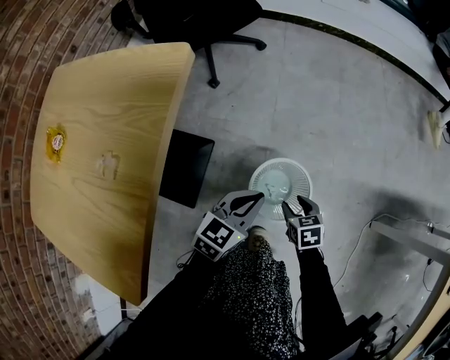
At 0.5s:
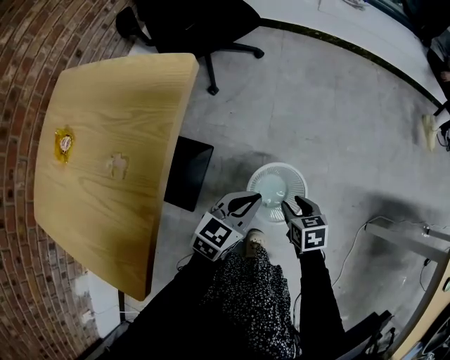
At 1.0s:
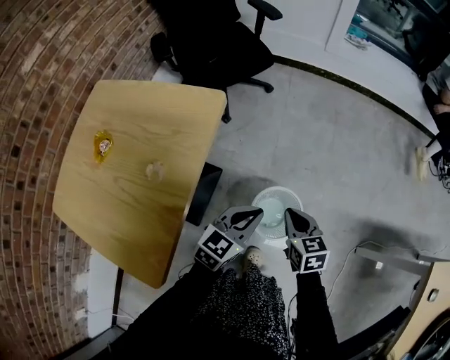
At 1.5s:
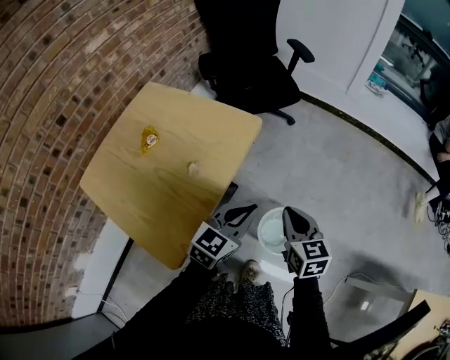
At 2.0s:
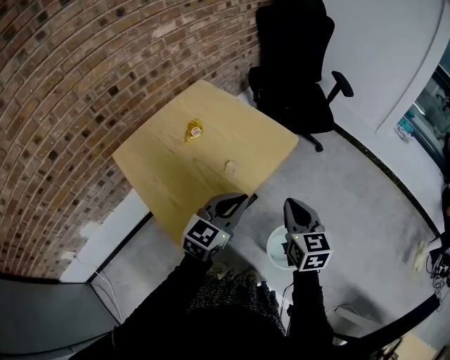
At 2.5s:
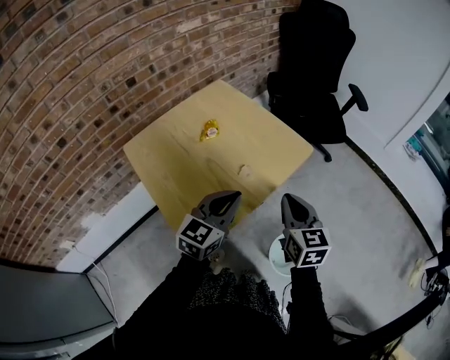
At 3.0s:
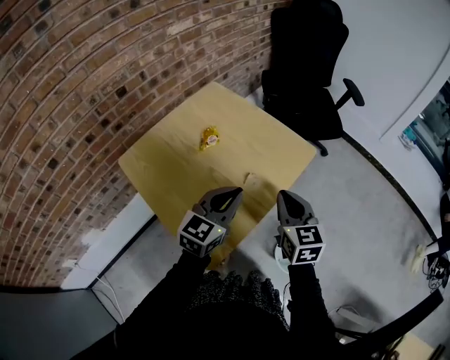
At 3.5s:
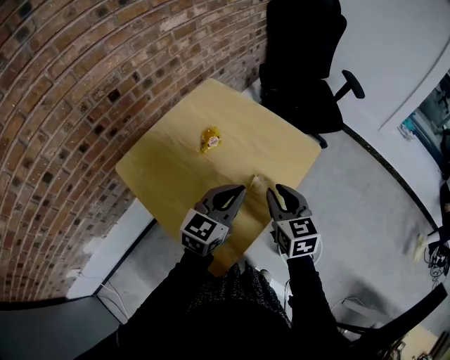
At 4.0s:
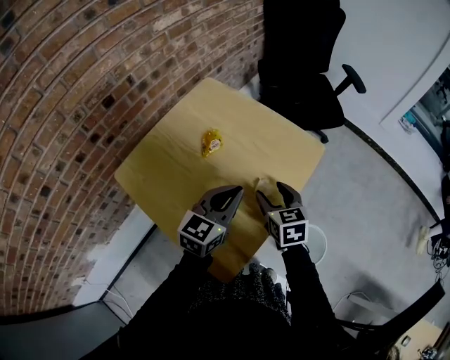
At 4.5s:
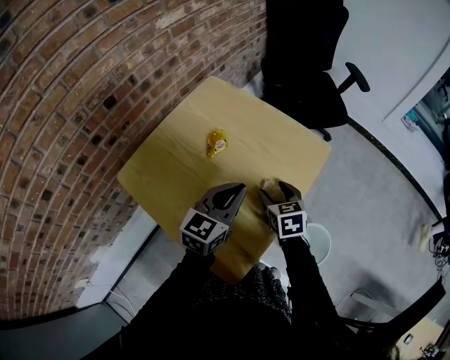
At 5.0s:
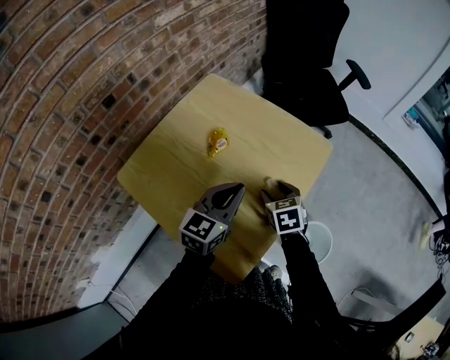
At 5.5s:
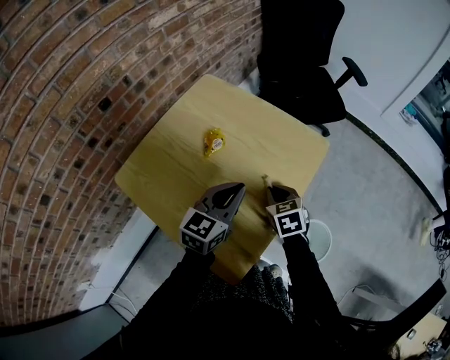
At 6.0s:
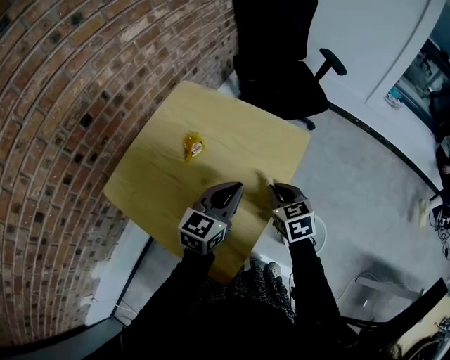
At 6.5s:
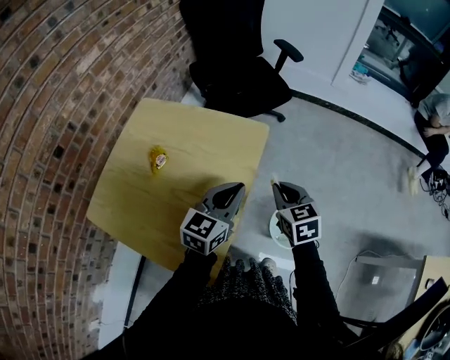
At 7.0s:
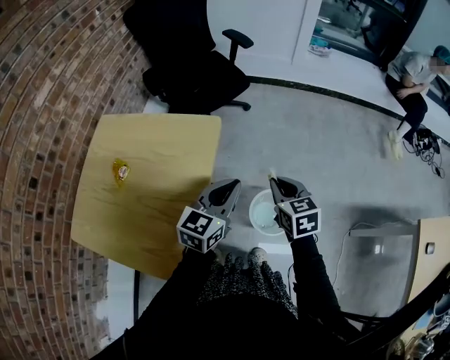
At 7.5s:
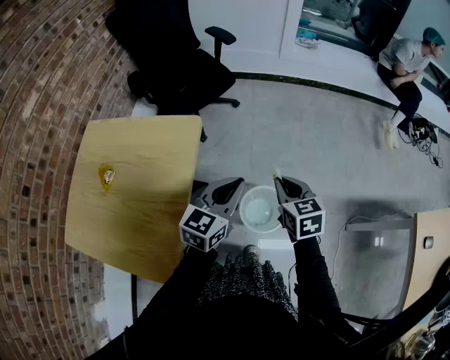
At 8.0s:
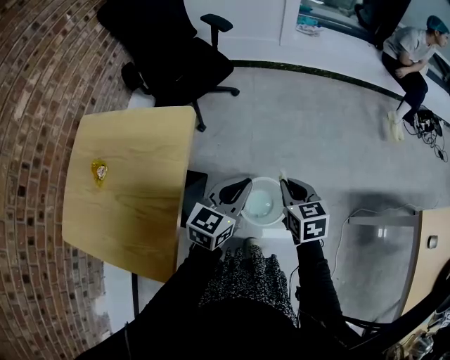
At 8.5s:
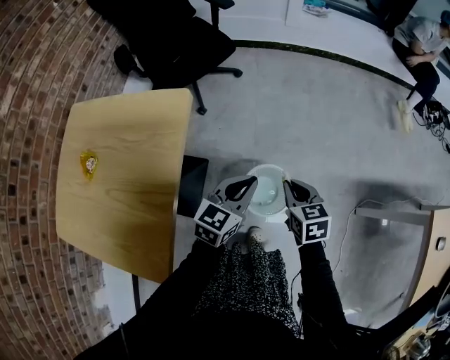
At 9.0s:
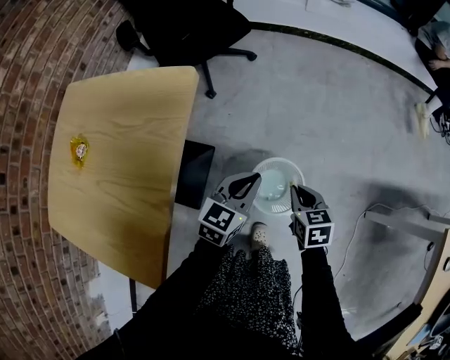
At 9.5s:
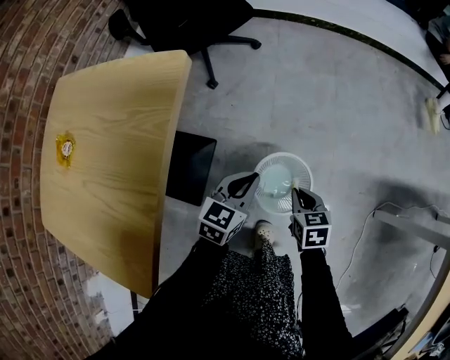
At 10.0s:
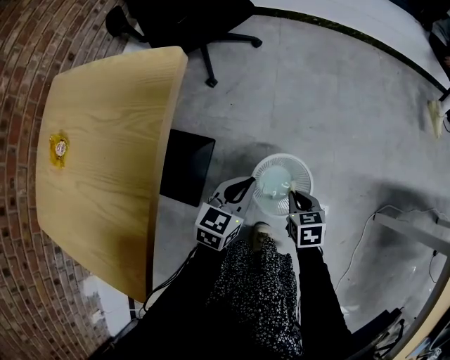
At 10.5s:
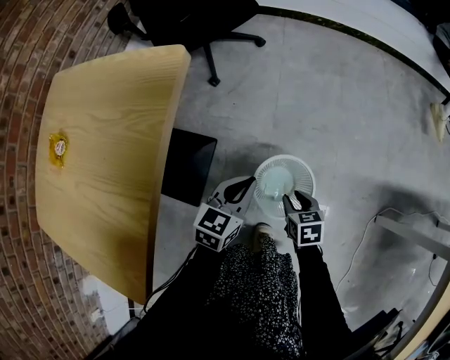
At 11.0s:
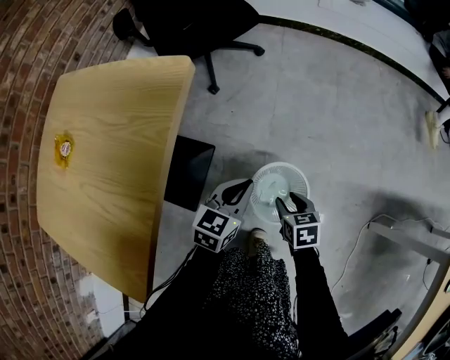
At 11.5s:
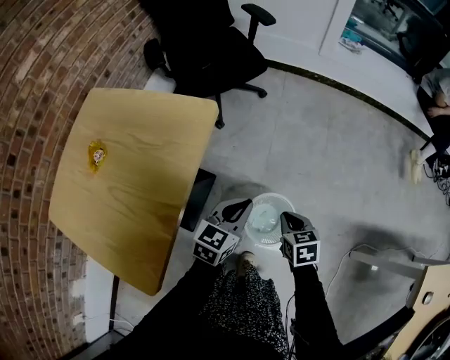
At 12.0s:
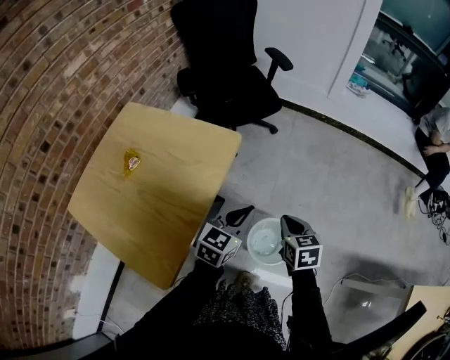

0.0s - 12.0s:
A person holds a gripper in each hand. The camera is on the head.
0.0s - 2.0s: Both grippers move upward, about 40 cm. The left gripper rotates approximately 40 degrees, while the right gripper tilts its fingers some 40 degrees upward, and closes its fingers.
2.0s - 4.0s: The two grippers go roughly 20 cm to the left and forward. The right gripper opens its fingers.
4.0s - 6.0s: The right gripper shifts by about 5 cm, and closes.
6.0s - 8.0s: The right gripper moves some 35 cm, and turns by about 30 degrees. The left gripper changes place by approximately 35 cm, and changes its angle by approximately 30 degrees.
8.0s - 10.0s: The two grippers go approximately 30 cm downward.
10.0s - 12.0s: Both grippers move upward, roughly 25 cm. The right gripper opens and closes again.

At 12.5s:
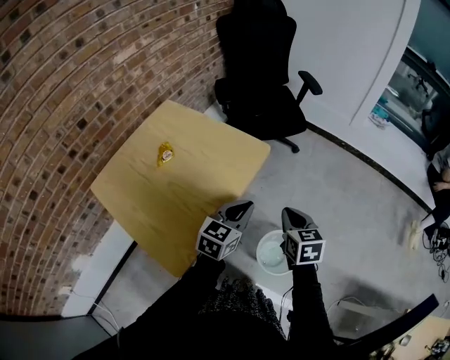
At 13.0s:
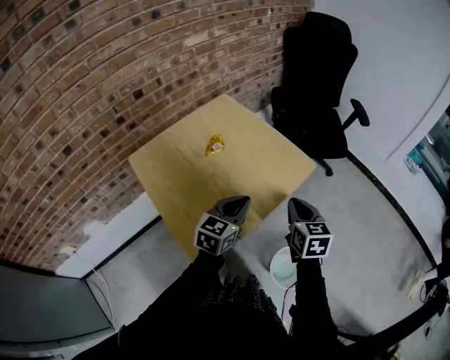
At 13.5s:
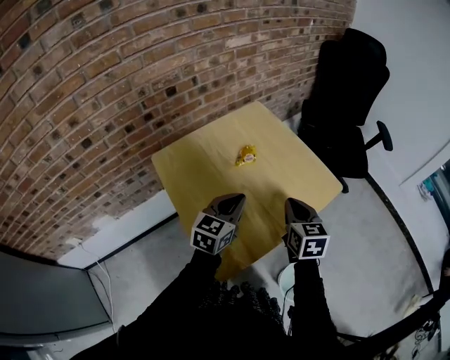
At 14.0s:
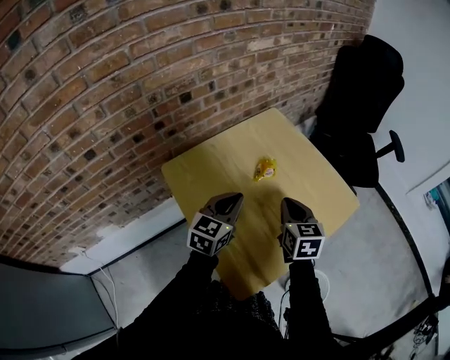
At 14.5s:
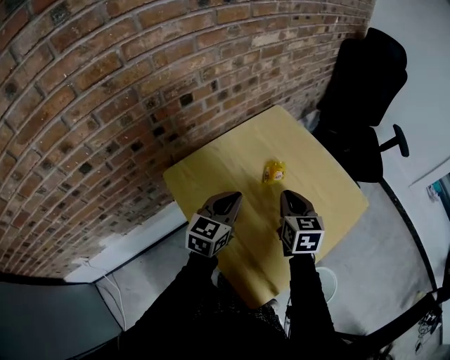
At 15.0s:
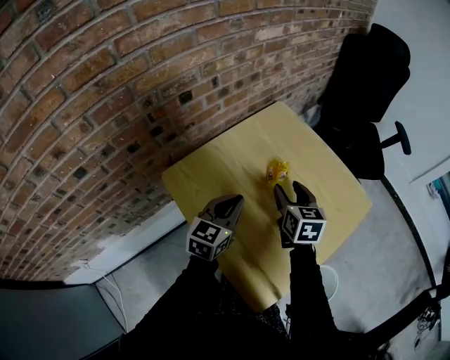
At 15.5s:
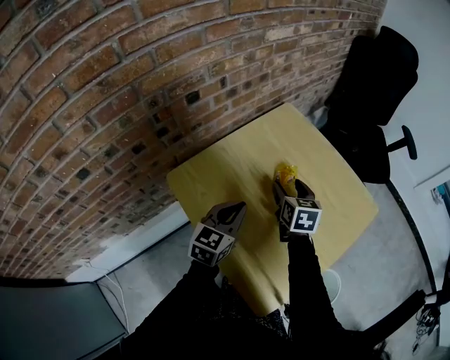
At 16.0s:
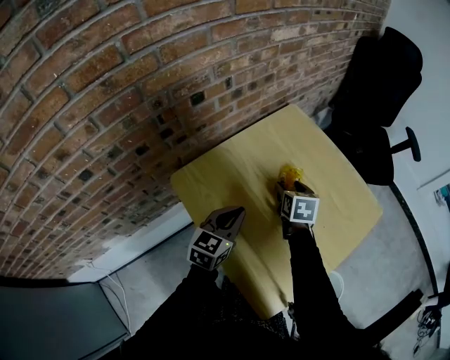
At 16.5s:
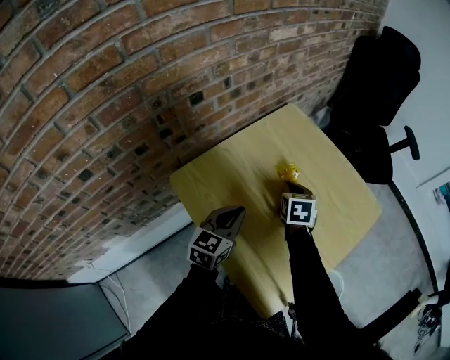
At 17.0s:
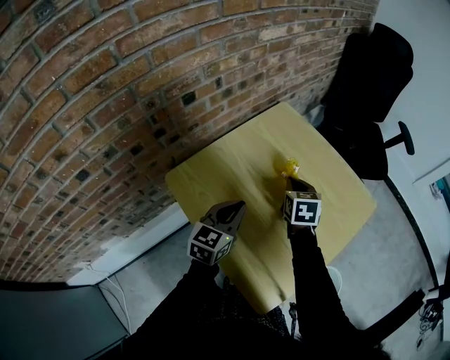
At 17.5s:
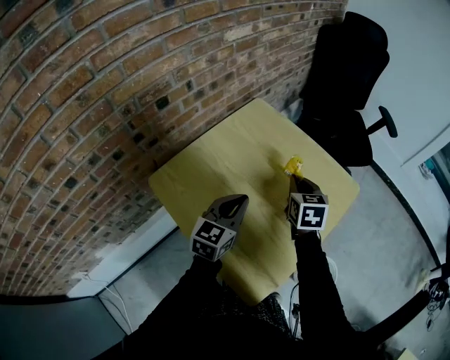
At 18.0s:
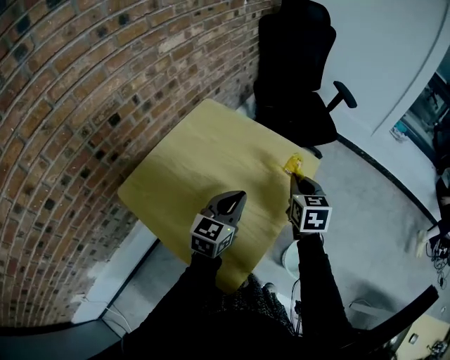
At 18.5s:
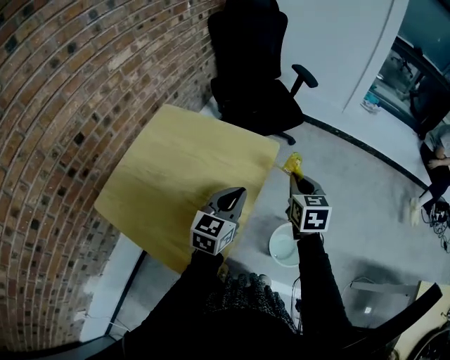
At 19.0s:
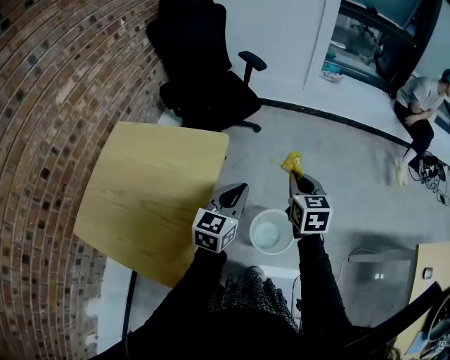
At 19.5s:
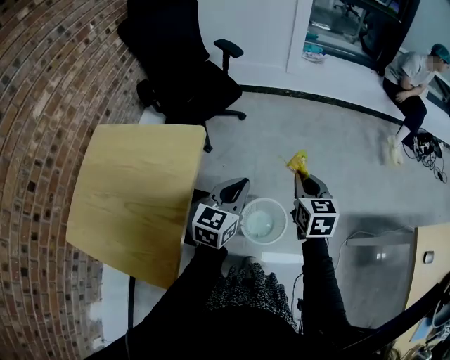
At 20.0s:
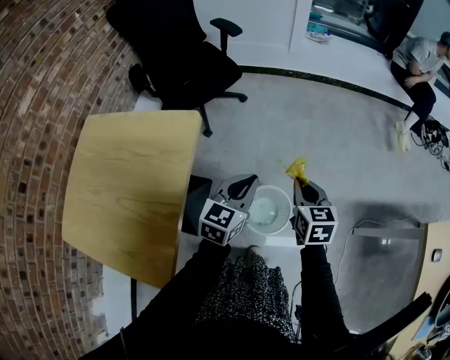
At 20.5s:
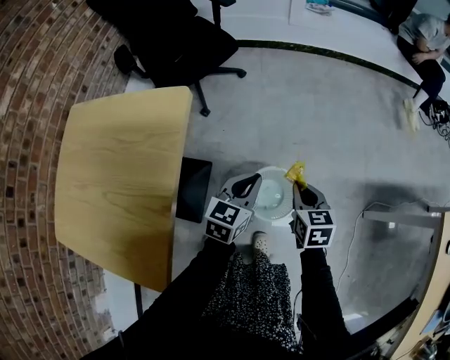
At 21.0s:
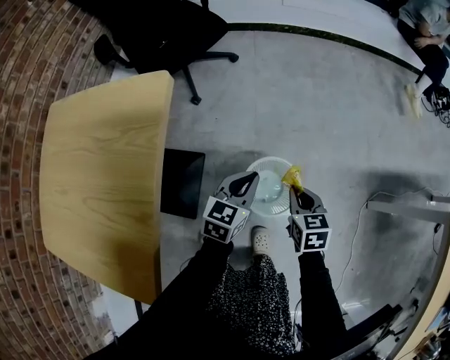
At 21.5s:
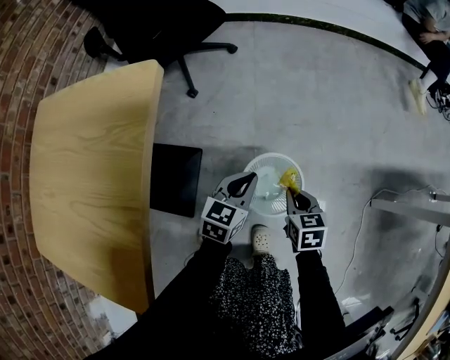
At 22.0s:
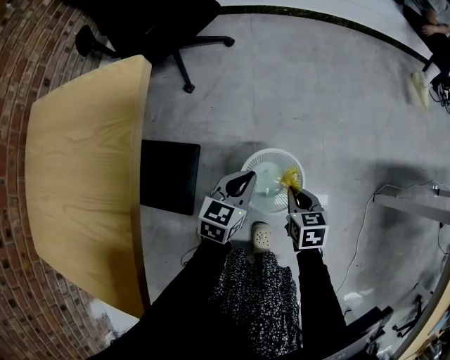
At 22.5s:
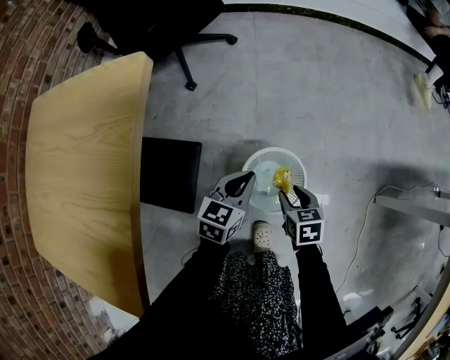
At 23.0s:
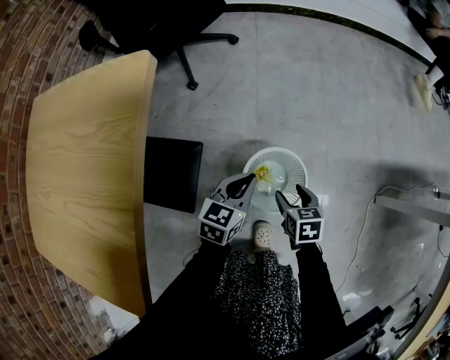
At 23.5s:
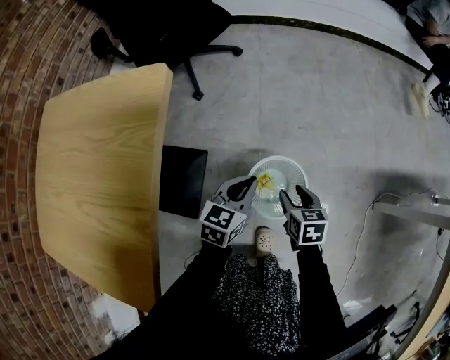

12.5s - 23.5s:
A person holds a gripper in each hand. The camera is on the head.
12.5s - 14.5s: Both grippers are carried to the left, approximately 40 cm. The left gripper rotates some 30 degrees.
14.5s - 16.0s: The right gripper moves downward and forward, approximately 15 cm, and opens; the left gripper shifts by approximately 5 cm.
16.0s - 18.0s: The left gripper travels to the right by about 25 cm; the right gripper moves to the right and upward, approximately 30 cm, swivels roughly 20 degrees, and closes up.
18.0s - 20.0s: The right gripper moves roughly 40 cm, and changes its angle by approximately 30 degrees. Meanwhile the left gripper ends up approximately 40 cm from where it was, and rotates some 30 degrees.
20.0s - 21.5s: Both grippers move downward, approximately 25 cm.
21.5s - 23.5s: The right gripper opens.

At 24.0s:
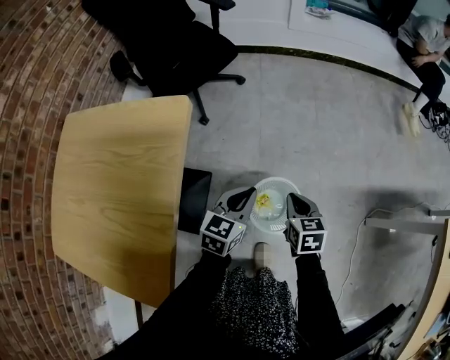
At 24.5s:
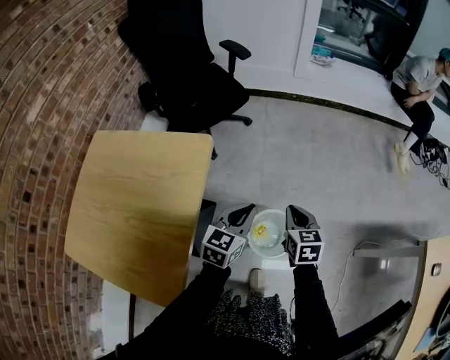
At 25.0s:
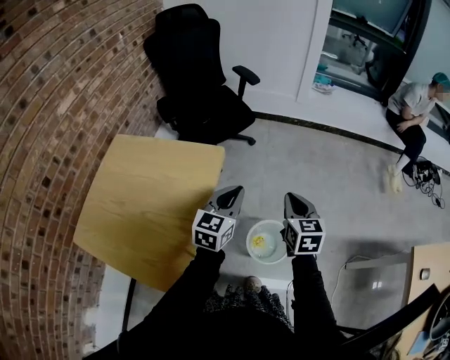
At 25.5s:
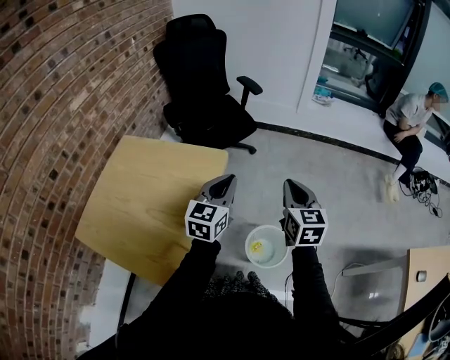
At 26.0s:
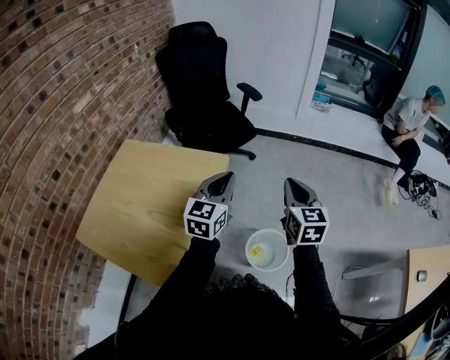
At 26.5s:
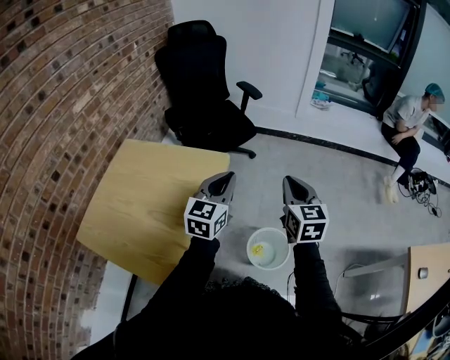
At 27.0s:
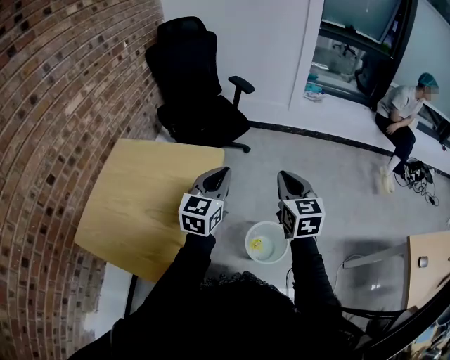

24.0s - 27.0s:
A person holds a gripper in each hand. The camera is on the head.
24.0s - 25.5s: The two grippers go about 30 cm upward. The right gripper rotates some 30 degrees. The left gripper swivels some 30 degrees.
25.5s - 27.0s: The grippers move only a little.

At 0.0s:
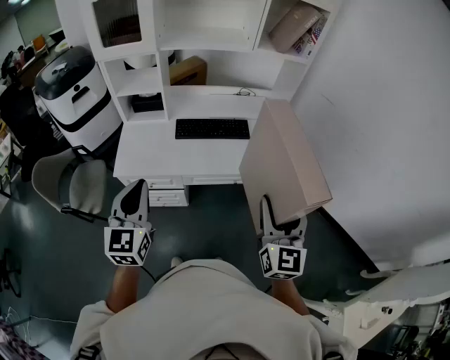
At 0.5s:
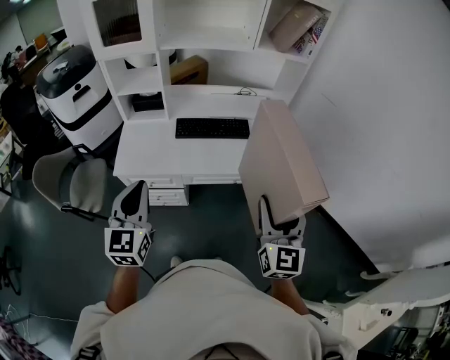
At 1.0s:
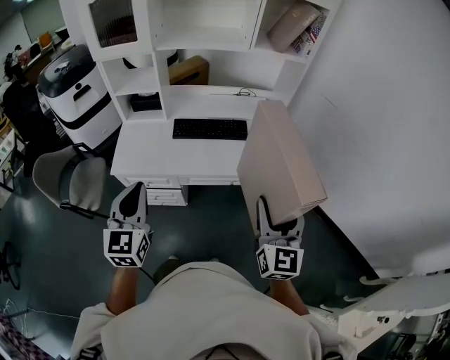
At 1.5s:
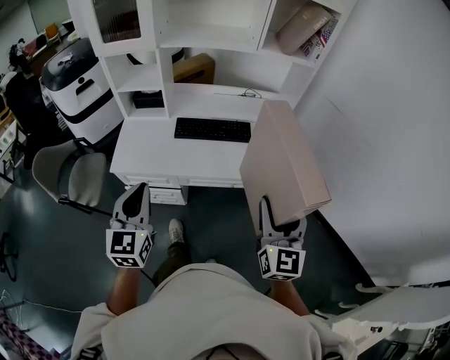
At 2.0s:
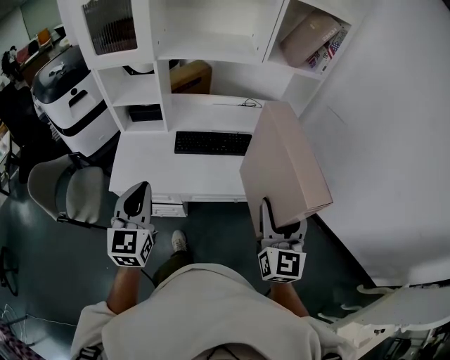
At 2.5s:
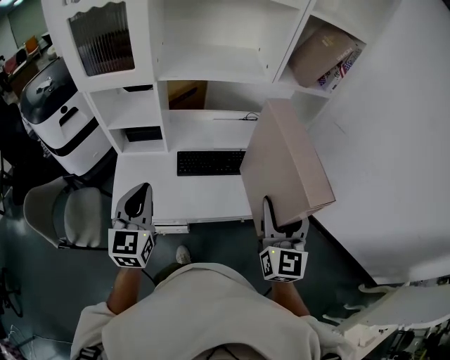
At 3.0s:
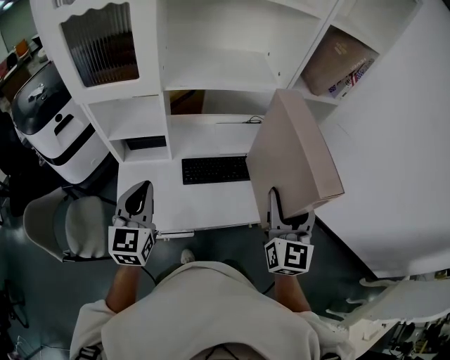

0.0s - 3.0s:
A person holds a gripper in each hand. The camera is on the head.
0.0s - 1.5s: The right gripper shifts by about 5 cm, while the left gripper changes place by some 5 cm.
1.5s - 3.0s: Both grippers move forward and to the left, approximately 30 cm.
